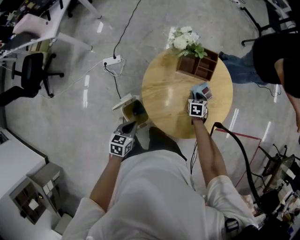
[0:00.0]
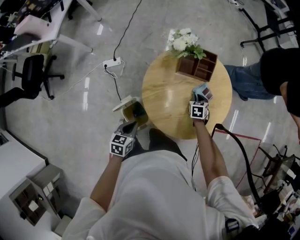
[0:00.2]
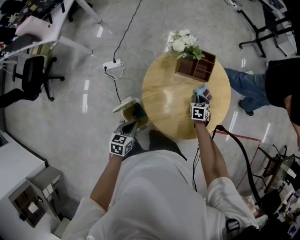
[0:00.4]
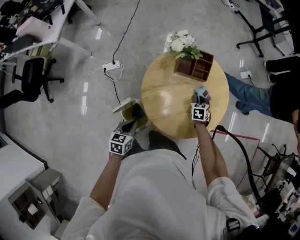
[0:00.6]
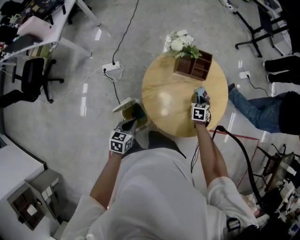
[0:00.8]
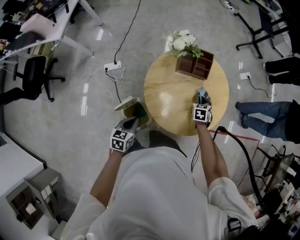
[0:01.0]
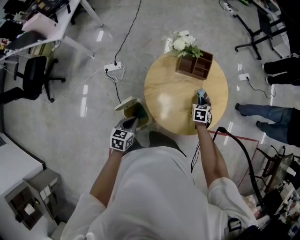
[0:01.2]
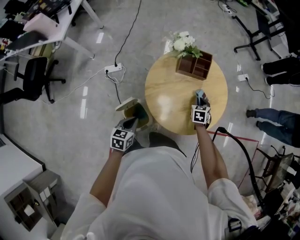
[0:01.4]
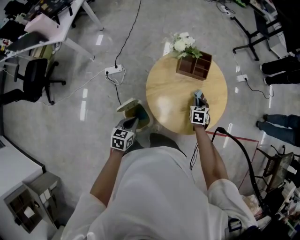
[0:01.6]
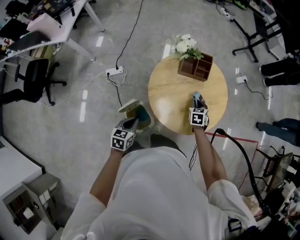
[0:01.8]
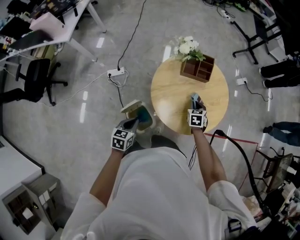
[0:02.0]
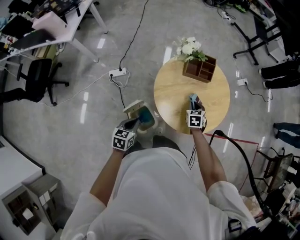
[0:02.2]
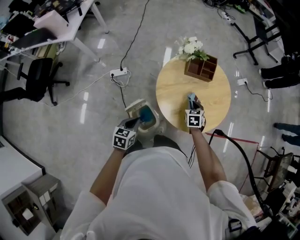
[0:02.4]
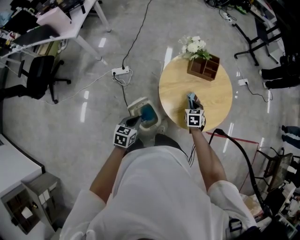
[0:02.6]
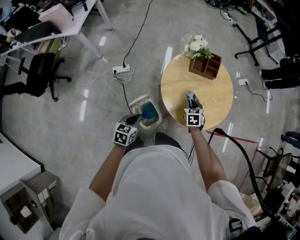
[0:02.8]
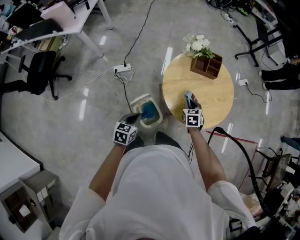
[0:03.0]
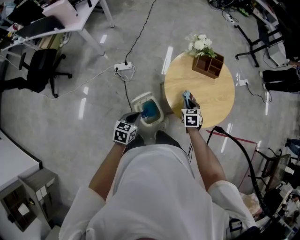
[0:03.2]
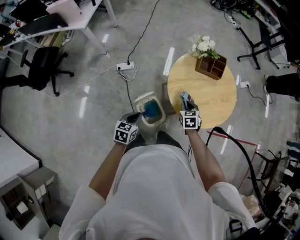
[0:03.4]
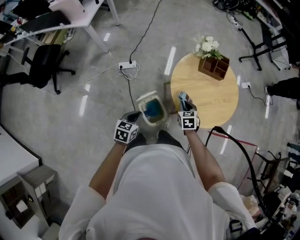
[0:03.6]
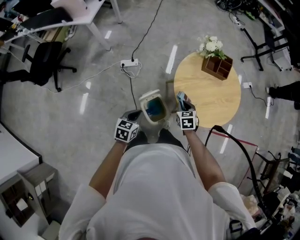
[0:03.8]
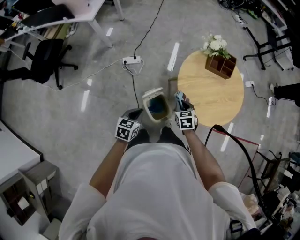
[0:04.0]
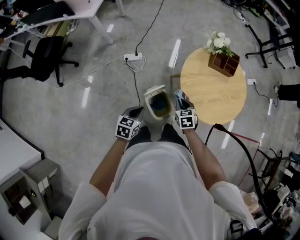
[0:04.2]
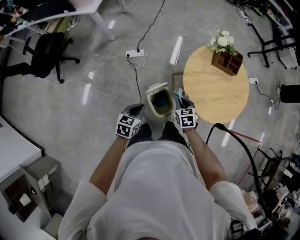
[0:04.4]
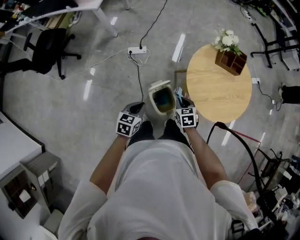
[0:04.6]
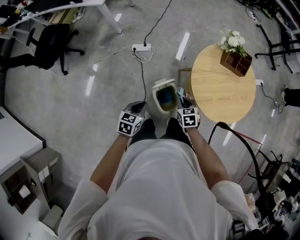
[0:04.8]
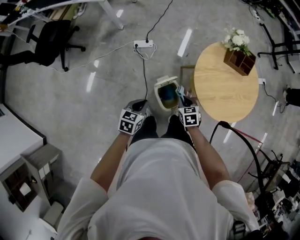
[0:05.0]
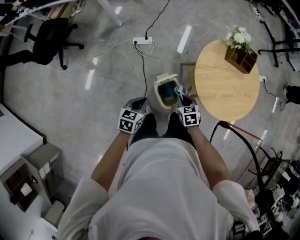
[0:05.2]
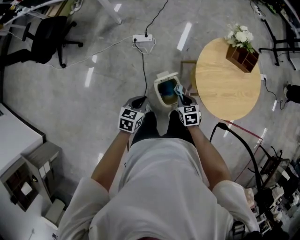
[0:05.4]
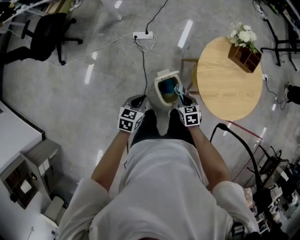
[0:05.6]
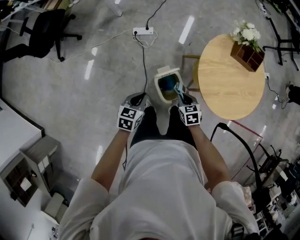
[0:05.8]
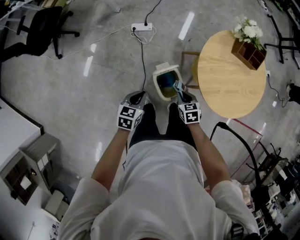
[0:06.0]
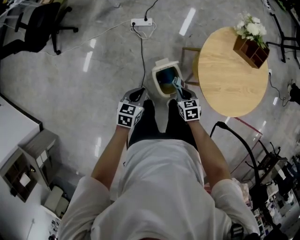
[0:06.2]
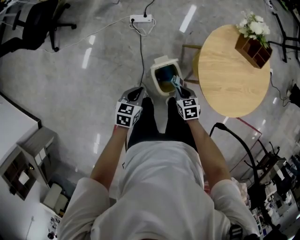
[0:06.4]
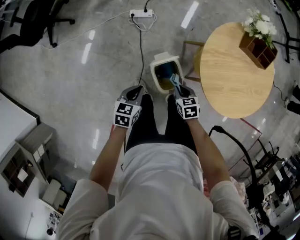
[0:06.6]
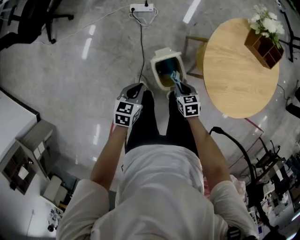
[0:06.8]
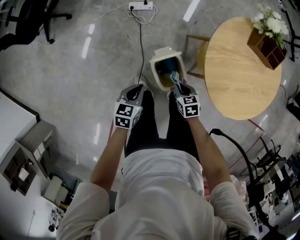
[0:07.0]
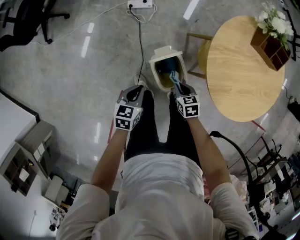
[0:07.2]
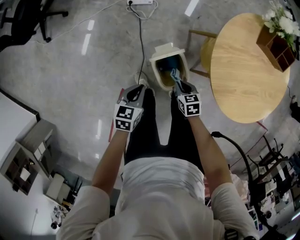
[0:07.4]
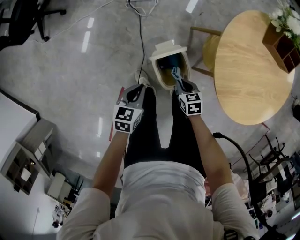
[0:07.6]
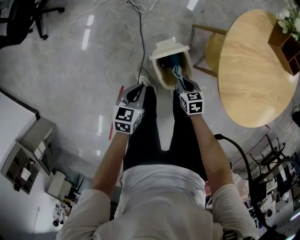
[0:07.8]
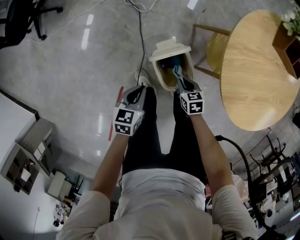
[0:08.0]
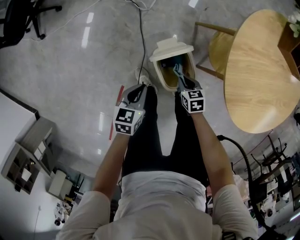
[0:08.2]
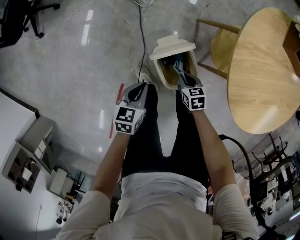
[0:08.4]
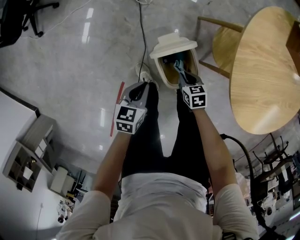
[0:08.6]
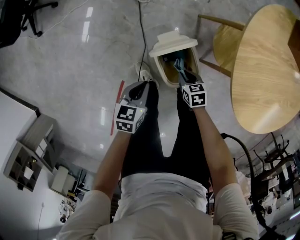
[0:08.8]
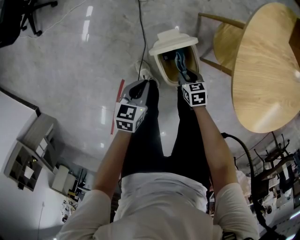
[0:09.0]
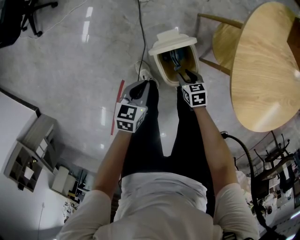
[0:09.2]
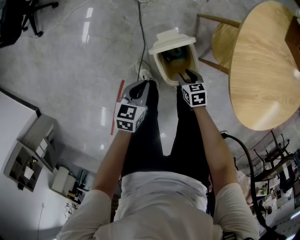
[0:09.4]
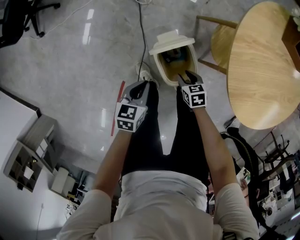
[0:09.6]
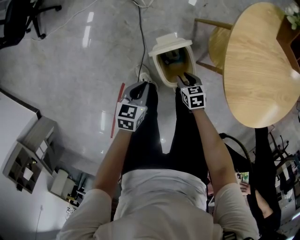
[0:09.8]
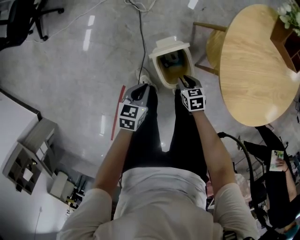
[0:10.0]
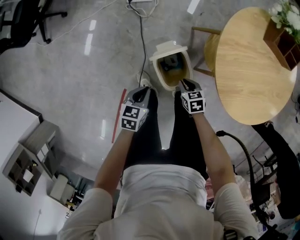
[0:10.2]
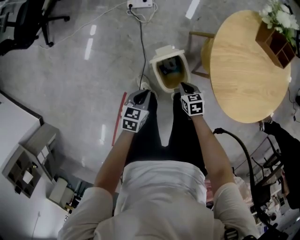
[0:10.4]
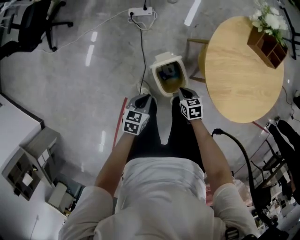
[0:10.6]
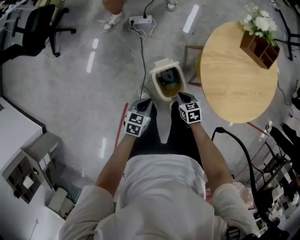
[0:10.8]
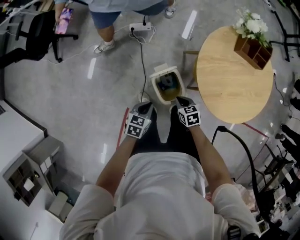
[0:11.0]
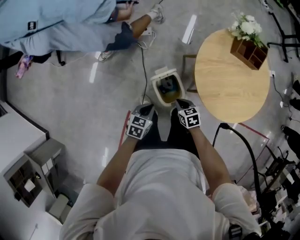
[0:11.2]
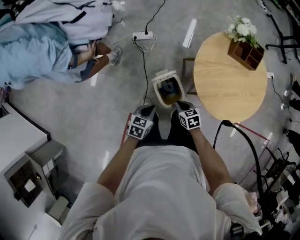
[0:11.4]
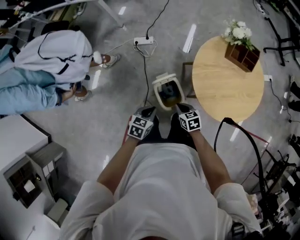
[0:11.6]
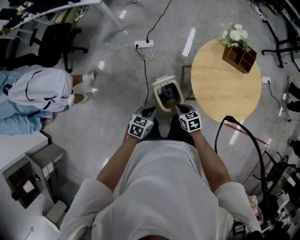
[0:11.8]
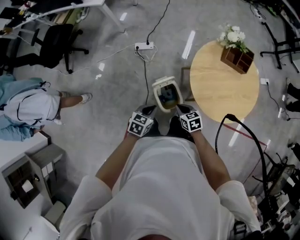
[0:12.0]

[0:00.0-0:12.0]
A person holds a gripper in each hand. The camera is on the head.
0:00.0 to 0:01.6: The left gripper ends up about 5 cm from where it was, while the right gripper travels upward and backward by approximately 10 cm.
0:01.6 to 0:03.0: The right gripper goes approximately 20 cm to the left and backward; the left gripper goes roughly 10 cm backward and to the left.
0:03.0 to 0:04.4: The left gripper heads to the left, covering some 10 cm, while the right gripper moves to the left and backward, roughly 20 cm.
0:04.4 to 0:06.0: Both grippers travel together downward, about 10 cm.
0:06.0 to 0:07.6: Both grippers travel together downward, about 15 cm.
0:07.6 to 0:09.0: Both grippers travel together downward, approximately 10 cm.
0:09.0 to 0:10.4: The right gripper is displaced upward by approximately 10 cm, and closes its fingers; the left gripper heads upward, covering about 10 cm.
0:10.4 to 0:12.0: Both grippers travel together upward, about 20 cm.

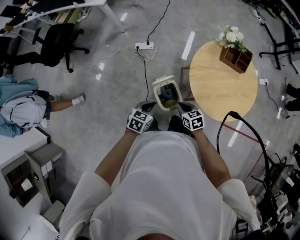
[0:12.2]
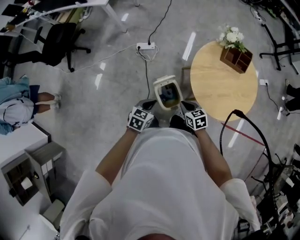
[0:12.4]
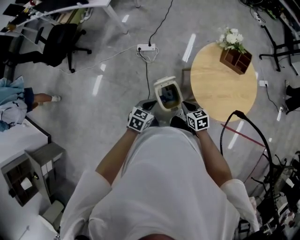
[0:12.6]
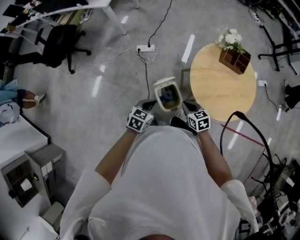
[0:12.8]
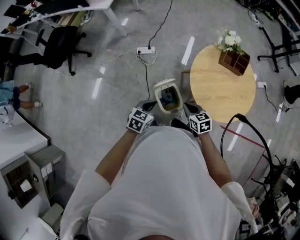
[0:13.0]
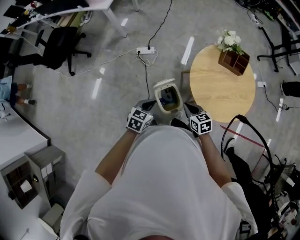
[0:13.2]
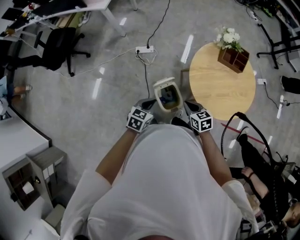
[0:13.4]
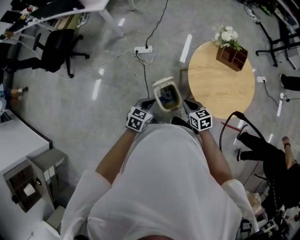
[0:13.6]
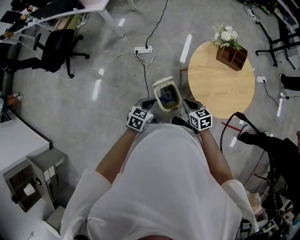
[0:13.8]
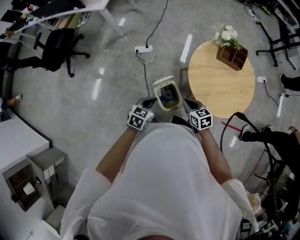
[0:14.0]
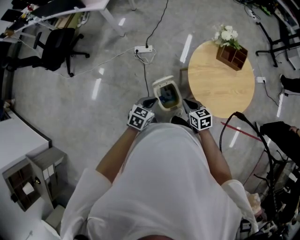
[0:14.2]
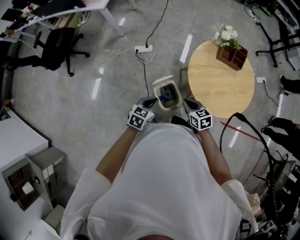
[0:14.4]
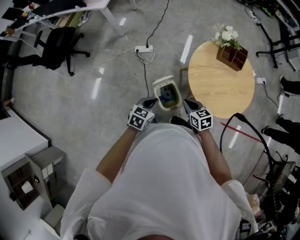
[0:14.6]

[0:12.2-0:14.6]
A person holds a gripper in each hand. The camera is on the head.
0:12.2 to 0:13.4: The right gripper goes about 5 cm upward.
0:13.4 to 0:14.6: The grippers move only a little.

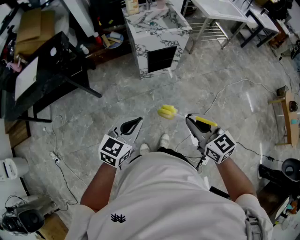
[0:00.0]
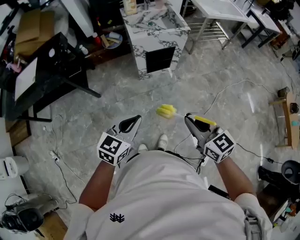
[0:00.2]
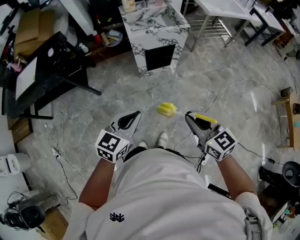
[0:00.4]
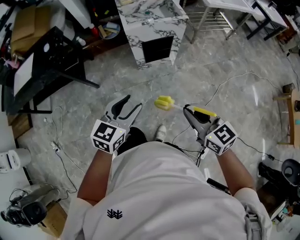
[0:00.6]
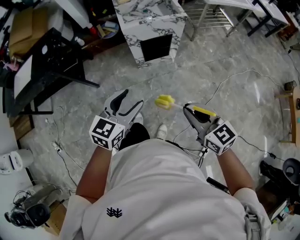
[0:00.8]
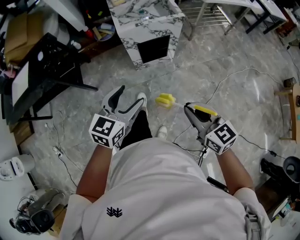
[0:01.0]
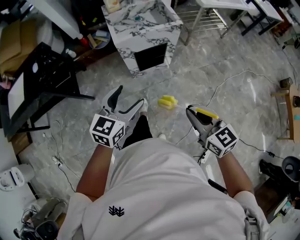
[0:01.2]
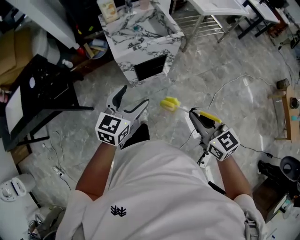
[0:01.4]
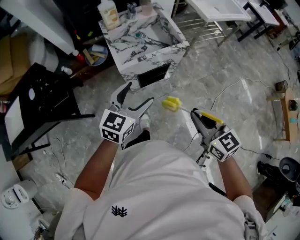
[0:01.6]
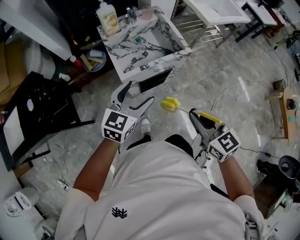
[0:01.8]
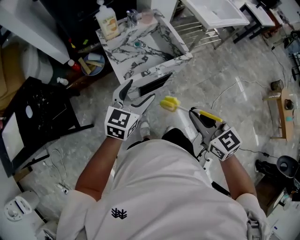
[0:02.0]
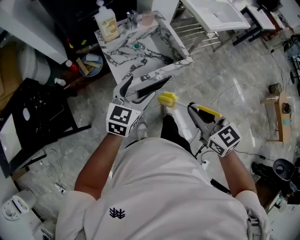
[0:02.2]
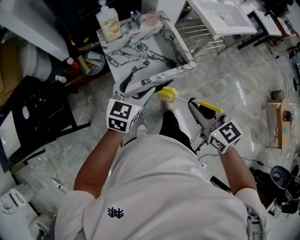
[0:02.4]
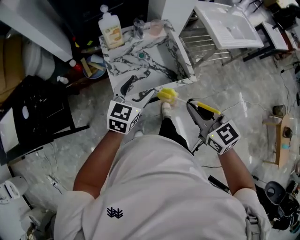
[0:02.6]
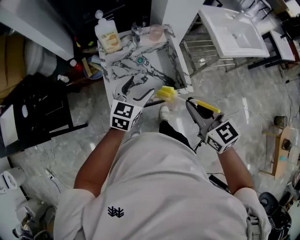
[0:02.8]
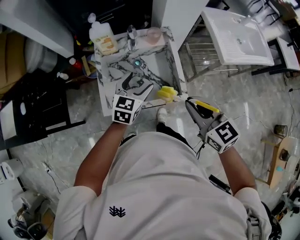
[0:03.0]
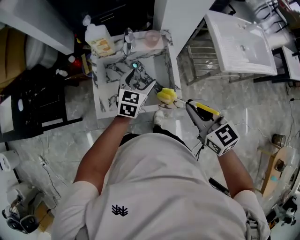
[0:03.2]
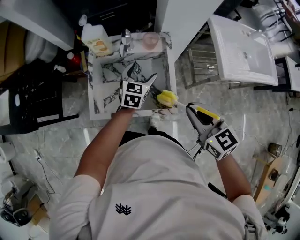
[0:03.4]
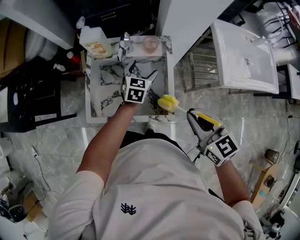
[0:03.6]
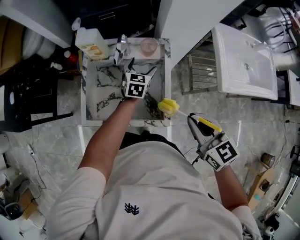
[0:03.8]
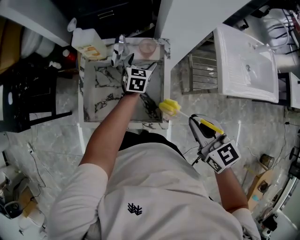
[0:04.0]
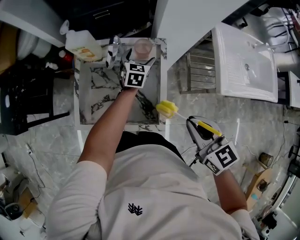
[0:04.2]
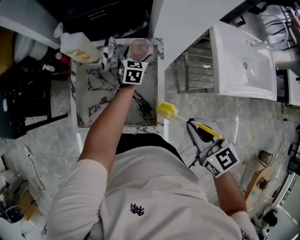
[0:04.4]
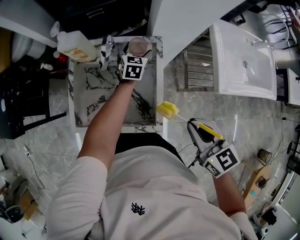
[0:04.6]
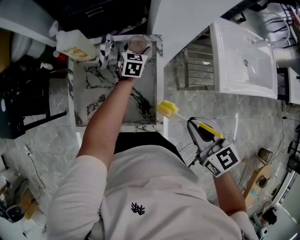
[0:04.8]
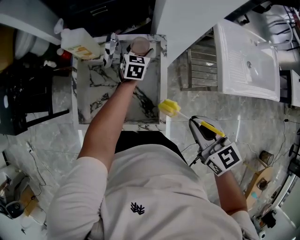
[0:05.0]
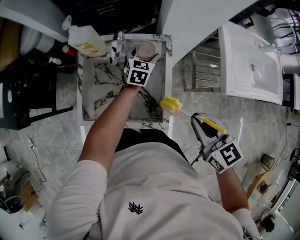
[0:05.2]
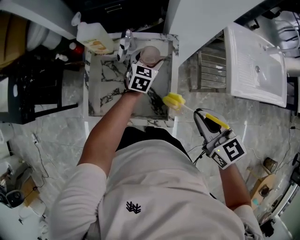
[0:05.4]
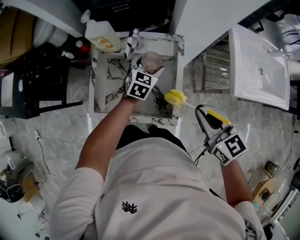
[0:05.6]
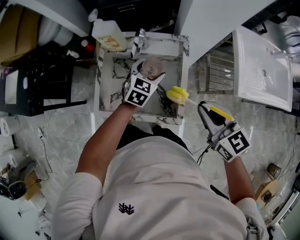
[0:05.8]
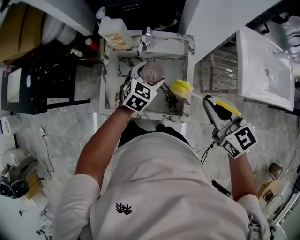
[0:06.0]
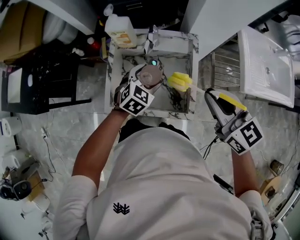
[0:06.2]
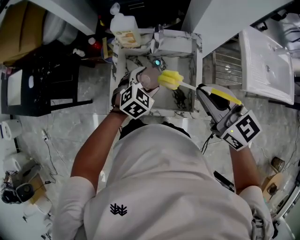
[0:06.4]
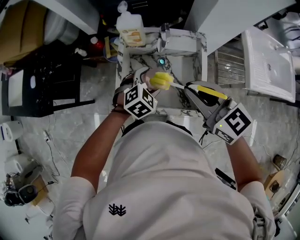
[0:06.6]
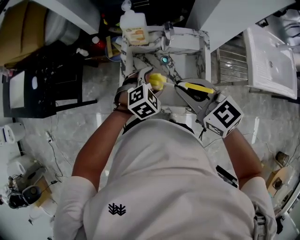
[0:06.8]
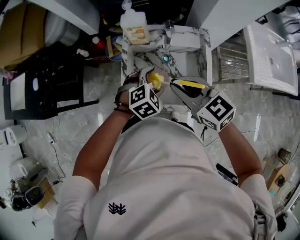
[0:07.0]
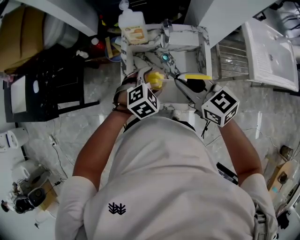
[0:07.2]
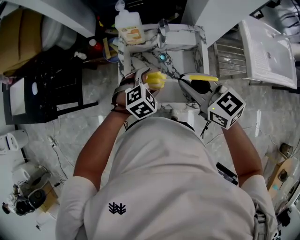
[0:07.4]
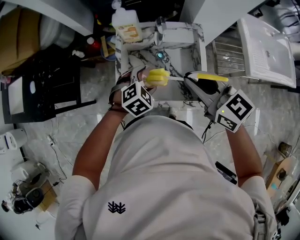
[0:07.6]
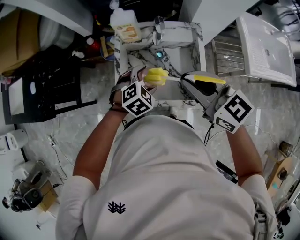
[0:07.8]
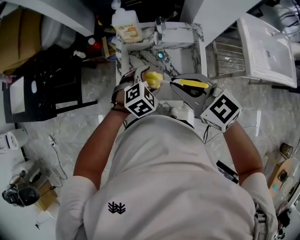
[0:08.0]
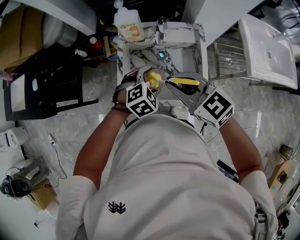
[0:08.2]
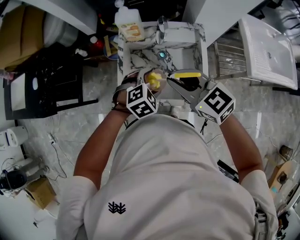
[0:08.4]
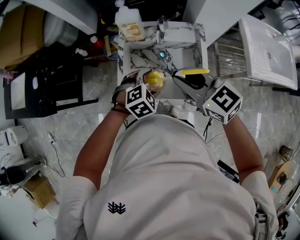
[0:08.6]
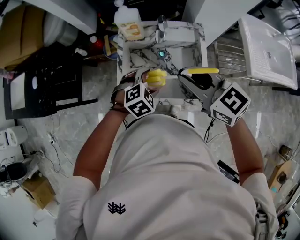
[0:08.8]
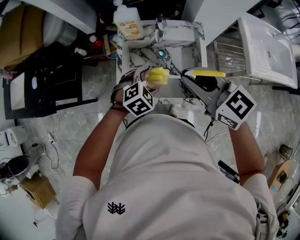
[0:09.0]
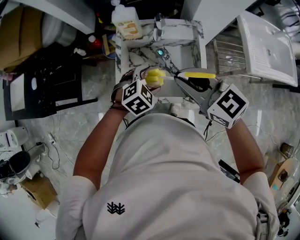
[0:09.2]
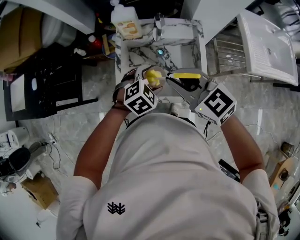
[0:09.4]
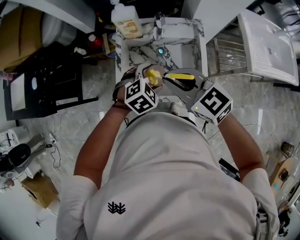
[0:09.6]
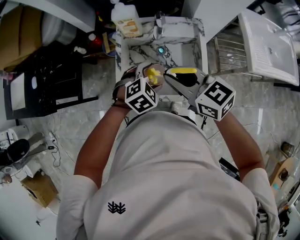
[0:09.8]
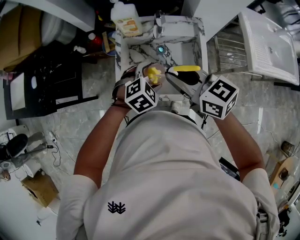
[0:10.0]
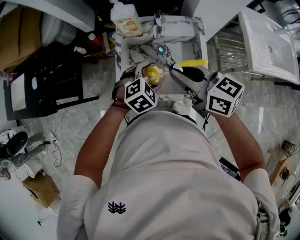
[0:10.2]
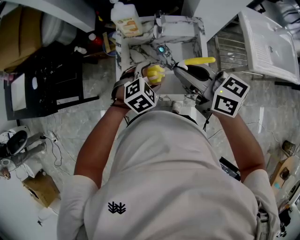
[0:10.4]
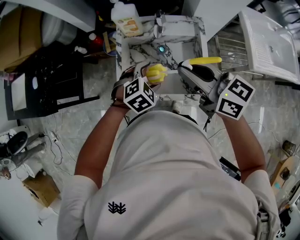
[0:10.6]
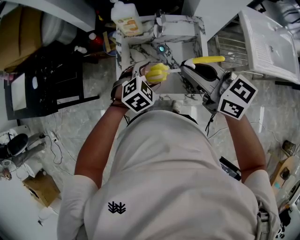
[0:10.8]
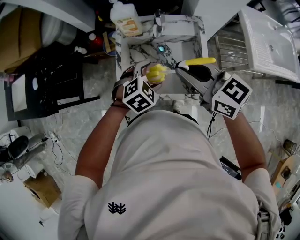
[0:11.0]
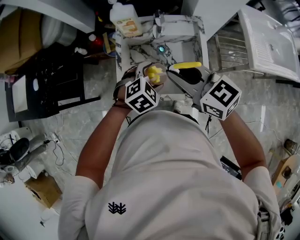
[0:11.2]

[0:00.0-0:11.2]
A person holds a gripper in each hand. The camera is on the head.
0:00.0 to 0:01.6: Both grippers travel together forward, some 35 cm. The left gripper opens.
0:01.6 to 0:03.2: Both grippers are carried forward, approximately 40 cm. The right gripper turns by some 20 degrees, while the left gripper rotates some 30 degrees.
0:03.2 to 0:04.8: The left gripper shifts approximately 25 cm forward, downward and to the right; the right gripper heads to the right and forward, covering approximately 10 cm.
0:04.8 to 0:06.4: The right gripper shifts roughly 20 cm to the left, upward and forward. Meanwhile the left gripper shifts some 30 cm backward, to the left and upward, and rotates approximately 30 degrees.
0:06.4 to 0:08.0: The right gripper moves left and right over roughly 10 cm, changing direction 2 times.
0:08.0 to 0:09.6: The grippers stay close to where they were, moving slightly.
